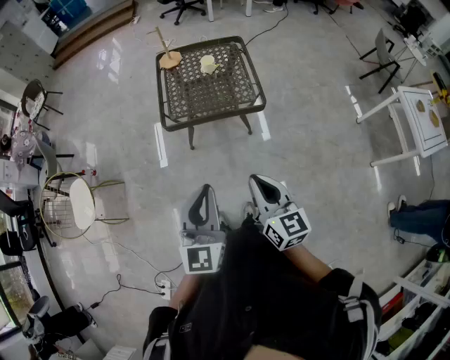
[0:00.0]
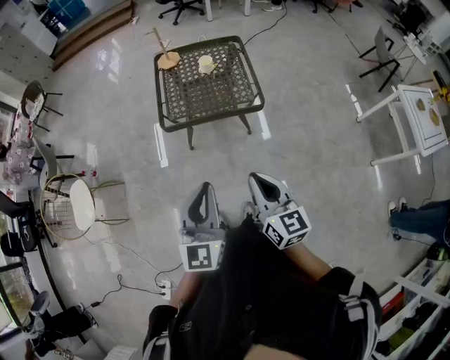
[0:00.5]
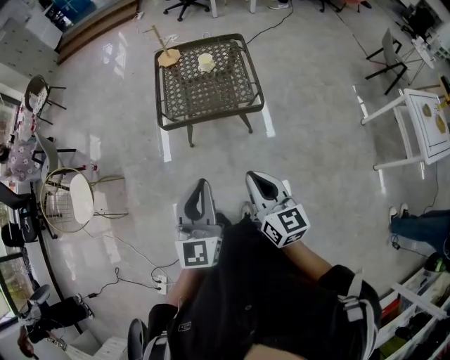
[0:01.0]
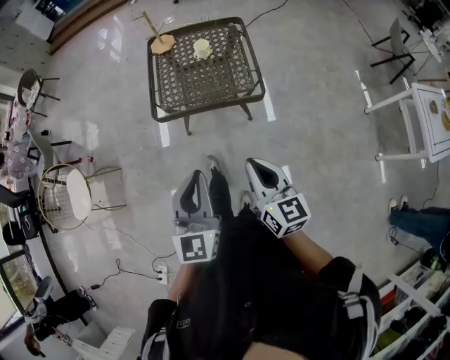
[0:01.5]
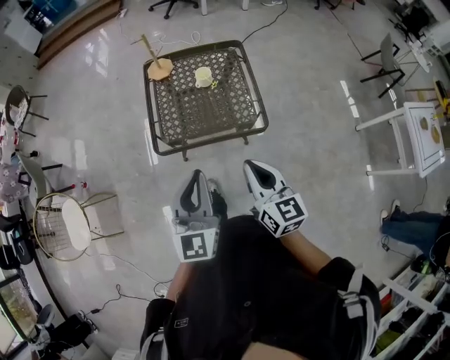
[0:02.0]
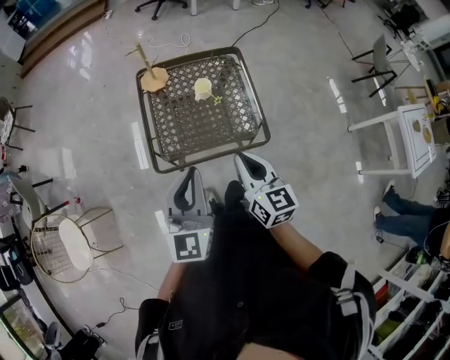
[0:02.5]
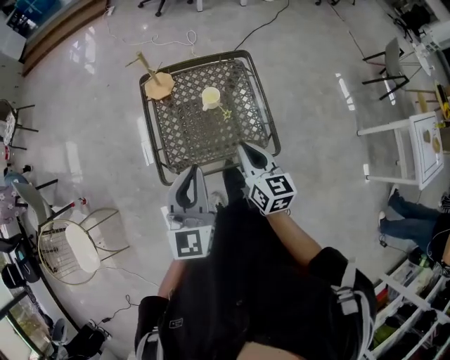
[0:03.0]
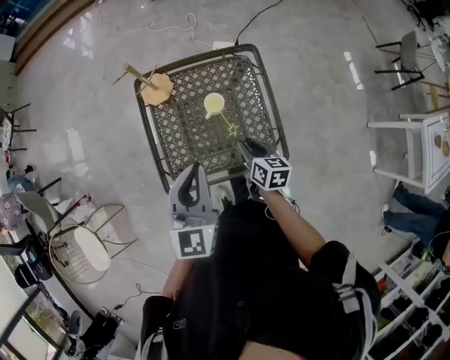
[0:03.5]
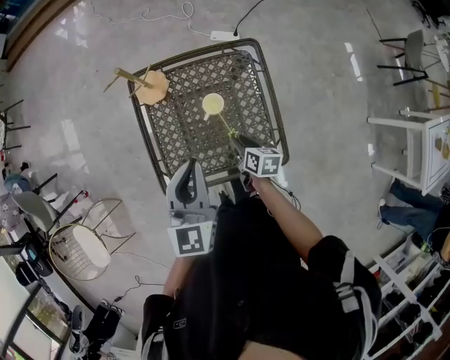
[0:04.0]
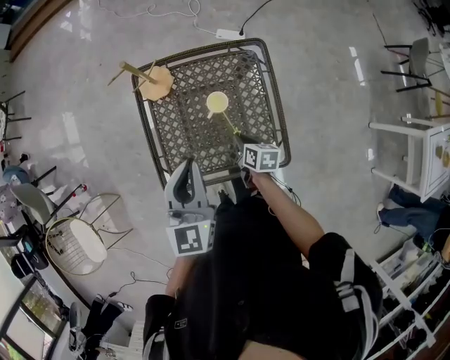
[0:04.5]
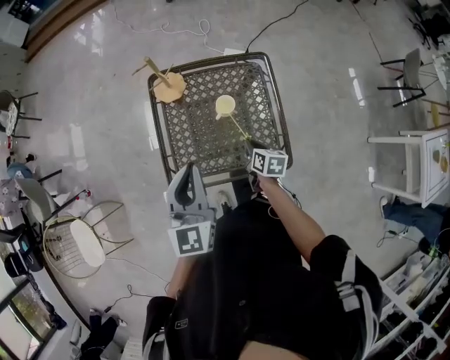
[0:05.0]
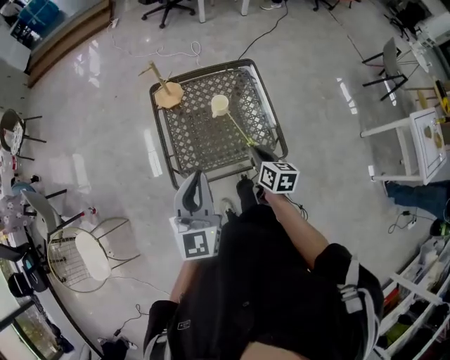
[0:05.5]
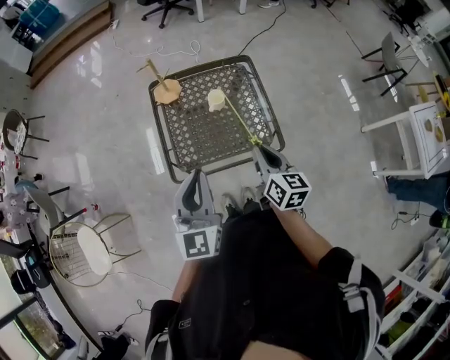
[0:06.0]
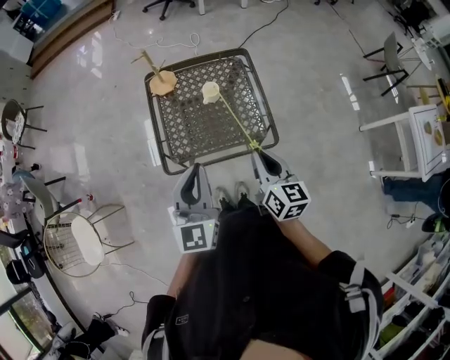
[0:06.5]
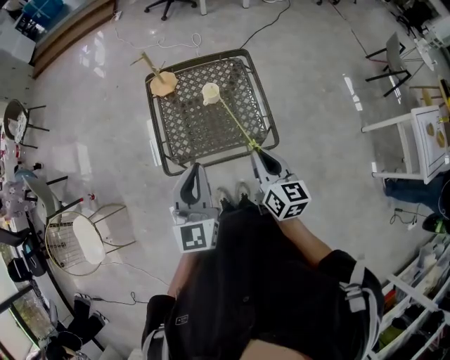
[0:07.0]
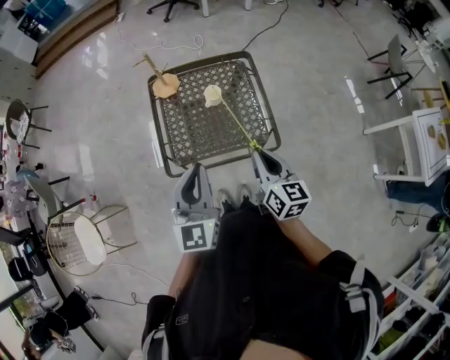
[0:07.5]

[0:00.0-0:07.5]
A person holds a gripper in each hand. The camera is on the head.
0:00.0 to 0:02.0: Both grippers move forward, approximately 25 cm.
0:02.0 to 0:04.0: The right gripper is displaced forward and downward by some 50 cm, tilts its fingers approximately 30 degrees downward, and opens, while the left gripper shifts roughly 40 cm forward.
0:04.0 to 0:05.5: The left gripper is displaced backward and to the left by roughly 20 cm; the right gripper is displaced upward and backward by about 20 cm, and closes.
0:05.5 to 0:07.5: The left gripper travels to the right by approximately 5 cm; the right gripper is displaced upward and backward by some 15 cm.

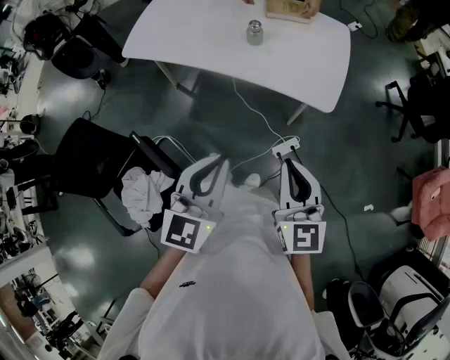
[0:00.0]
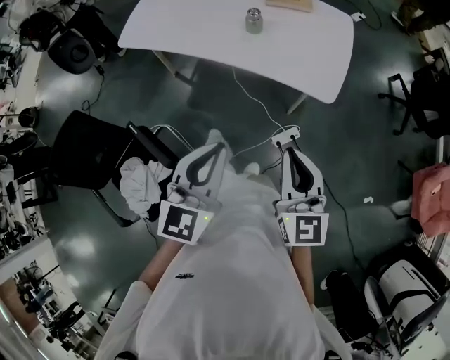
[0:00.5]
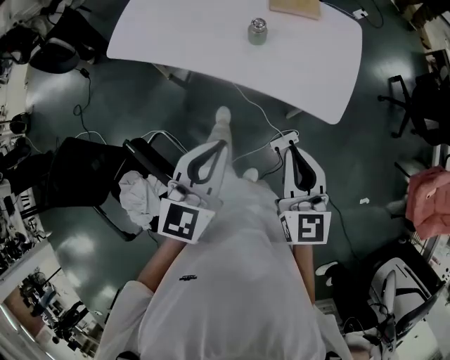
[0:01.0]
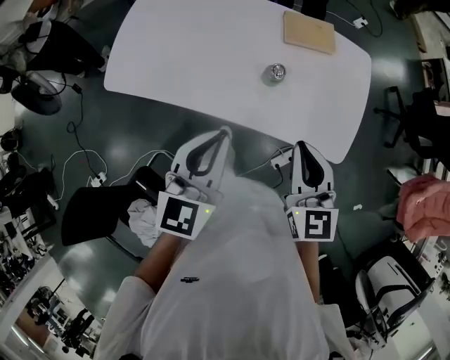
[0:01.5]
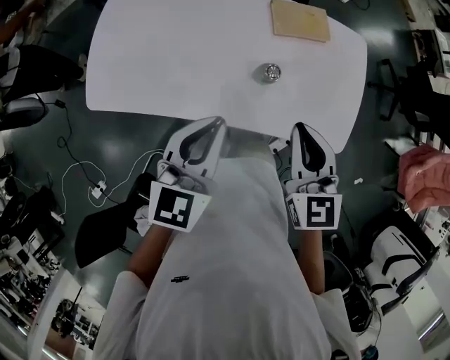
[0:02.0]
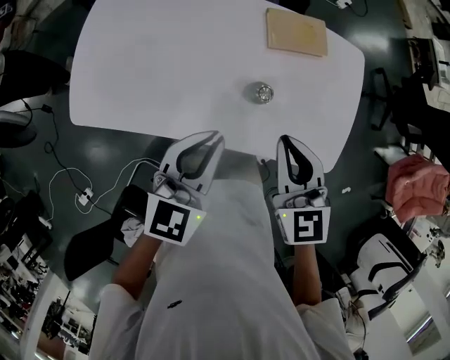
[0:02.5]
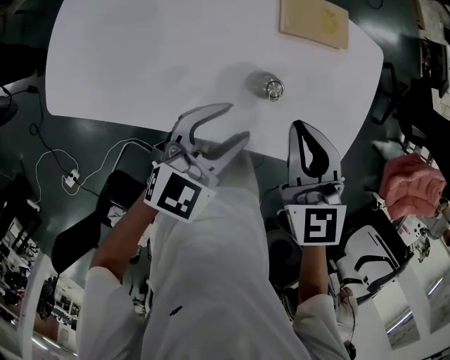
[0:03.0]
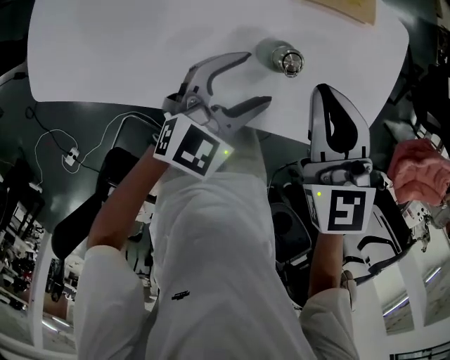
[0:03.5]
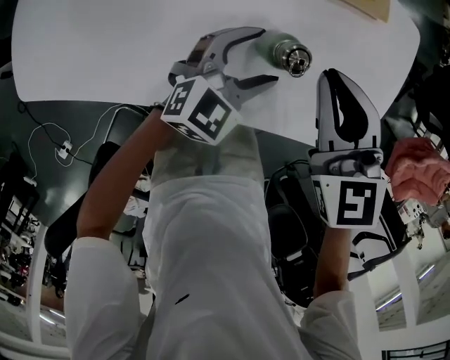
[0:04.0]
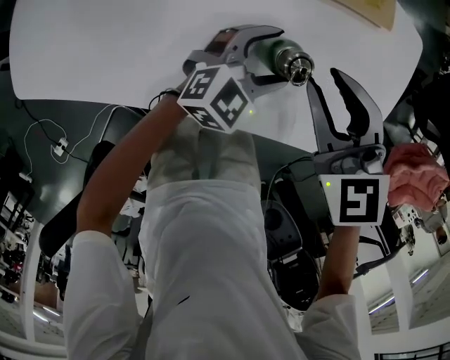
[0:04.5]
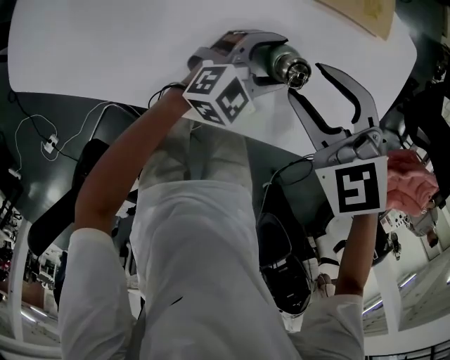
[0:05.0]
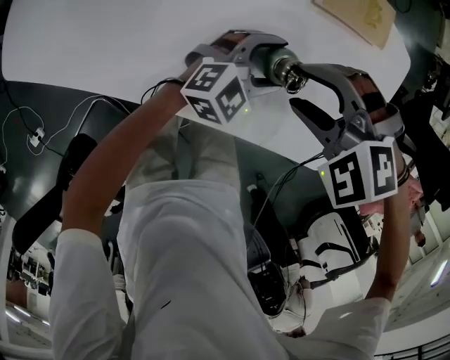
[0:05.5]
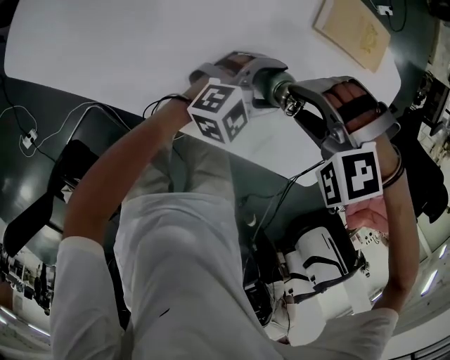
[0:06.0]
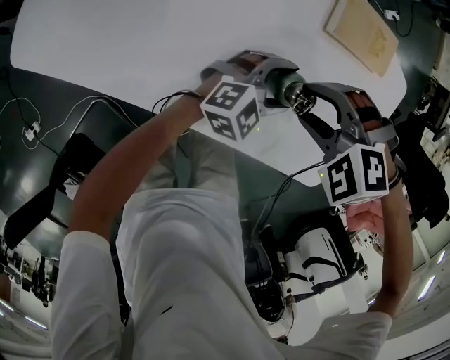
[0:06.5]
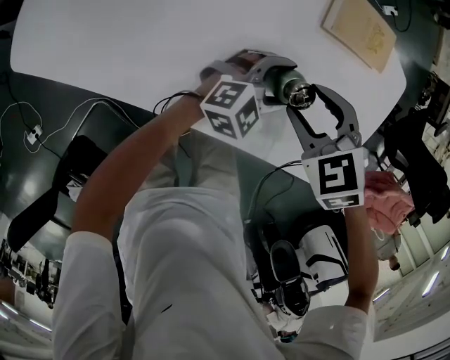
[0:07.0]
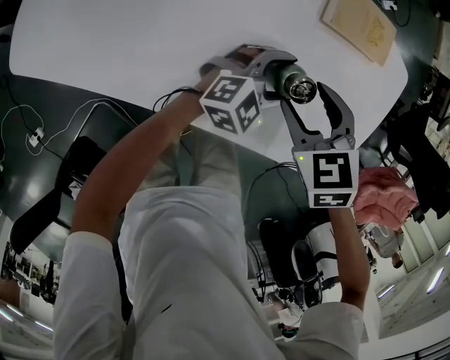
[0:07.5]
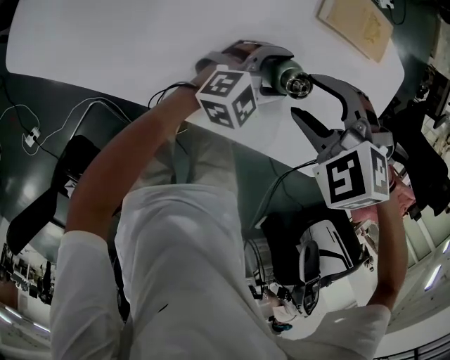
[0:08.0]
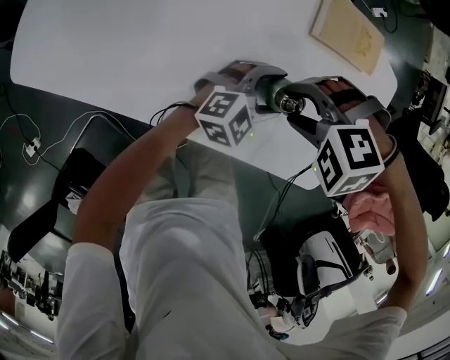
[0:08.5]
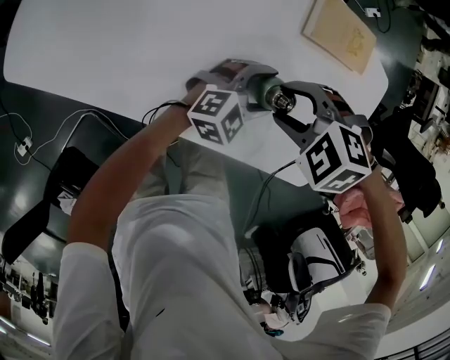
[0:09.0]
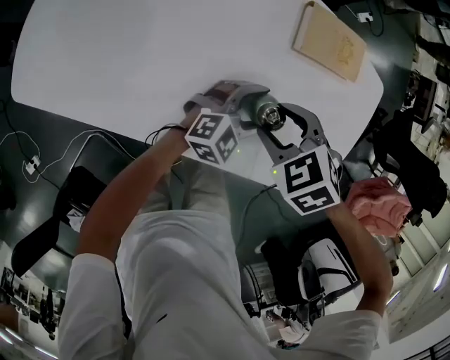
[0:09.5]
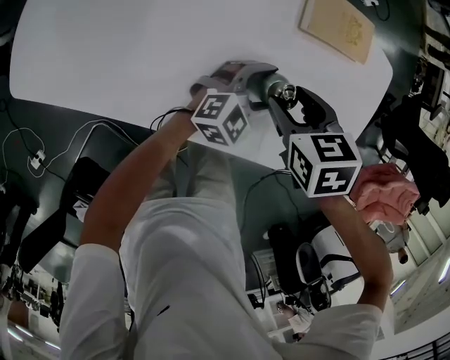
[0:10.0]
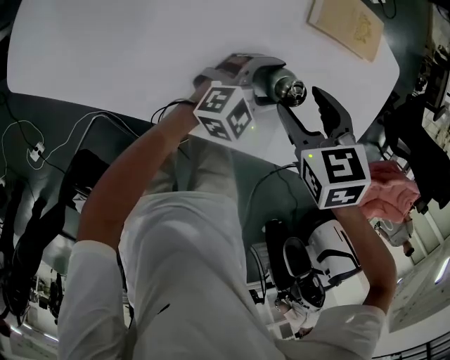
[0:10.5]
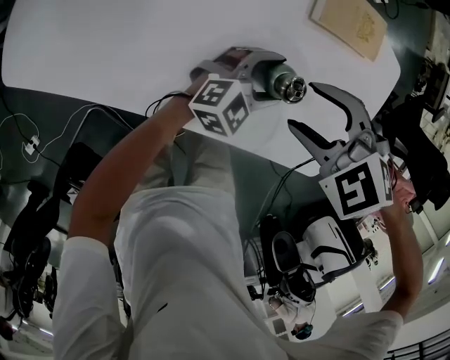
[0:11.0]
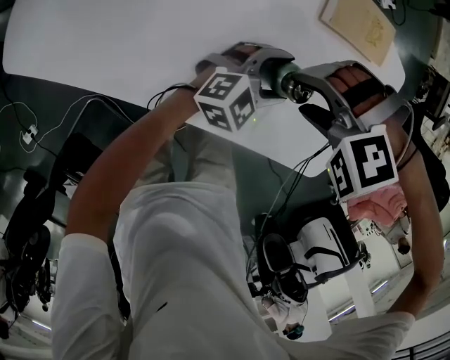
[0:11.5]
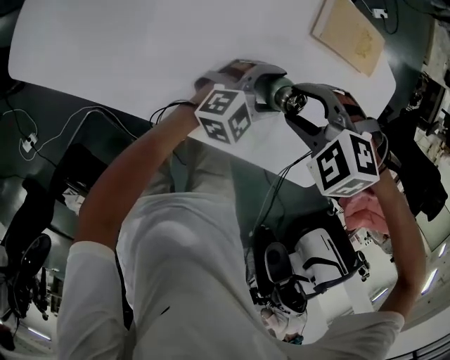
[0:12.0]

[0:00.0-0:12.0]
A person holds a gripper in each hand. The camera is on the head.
0:00.0 to 0:02.0: The two grippers travel together, forward, roughly 40 cm.
0:02.0 to 0:04.0: Both grippers move downward and forward, some 25 cm. The left gripper rotates approximately 30 degrees, and opens its fingers.
0:04.0 to 0:06.0: The right gripper heads downward, covering approximately 10 cm, rotates around the line of its fingers by roughly 80 degrees, counterclockwise from behind, and opens, while the left gripper moves approximately 5 cm.
0:06.0 to 0:08.0: The right gripper rotates approximately 40 degrees.
0:08.0 to 0:10.0: The right gripper rotates around the line of its fingers by roughly 60 degrees, clockwise from behind.
0:10.0 to 0:12.0: The right gripper rolls counterclockwise, seen from behind, by approximately 70 degrees.

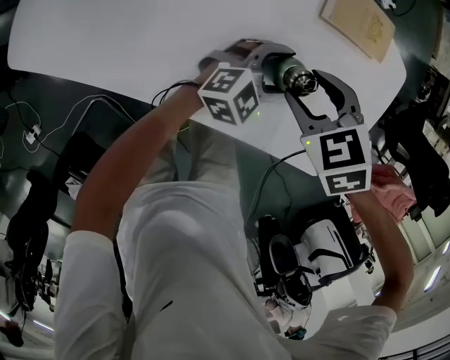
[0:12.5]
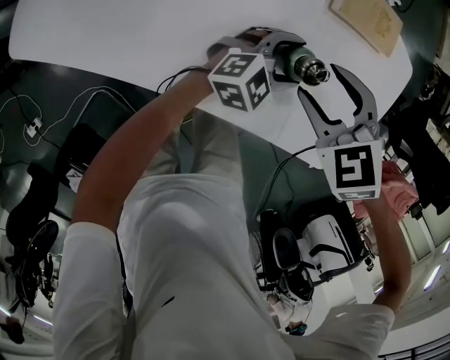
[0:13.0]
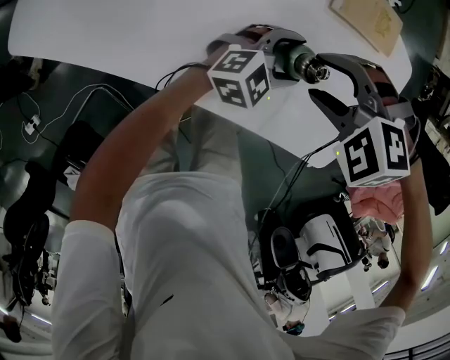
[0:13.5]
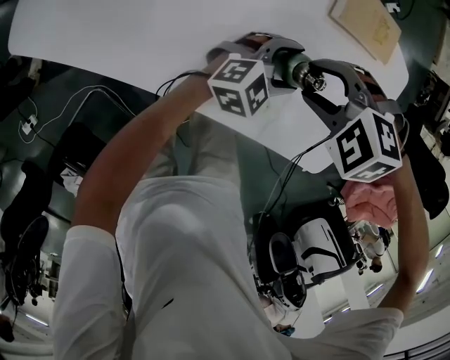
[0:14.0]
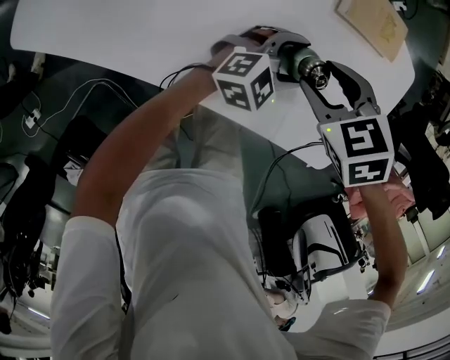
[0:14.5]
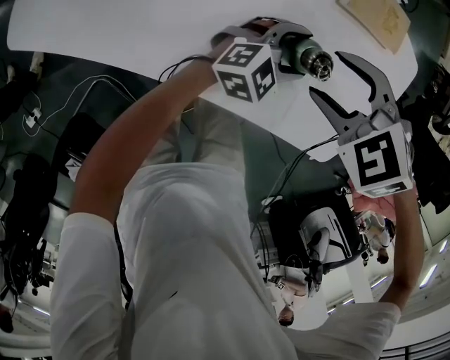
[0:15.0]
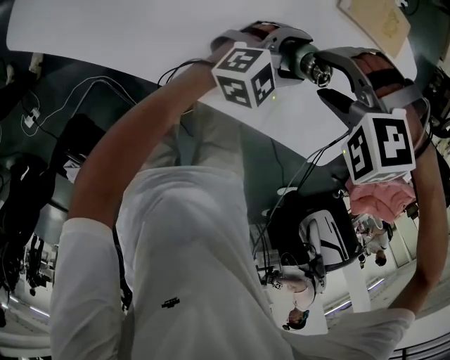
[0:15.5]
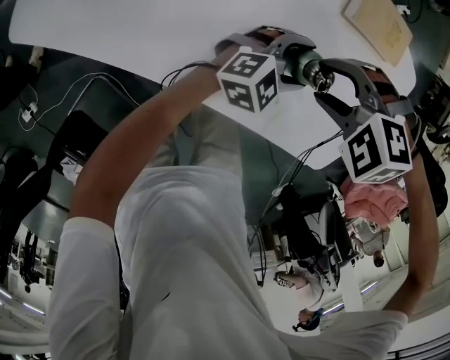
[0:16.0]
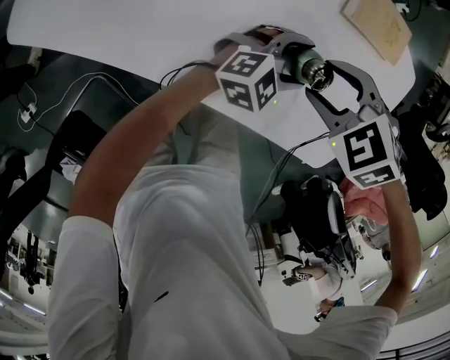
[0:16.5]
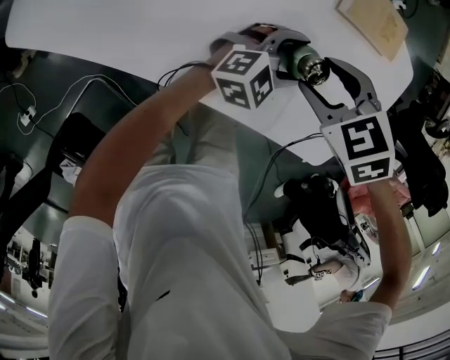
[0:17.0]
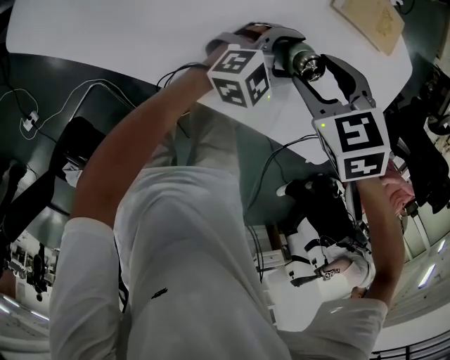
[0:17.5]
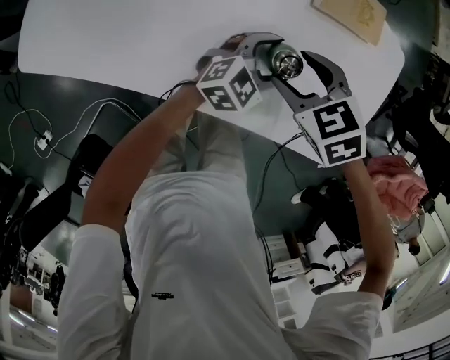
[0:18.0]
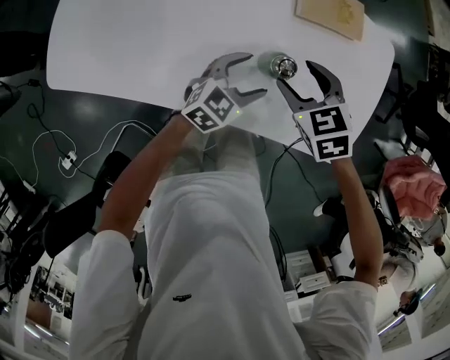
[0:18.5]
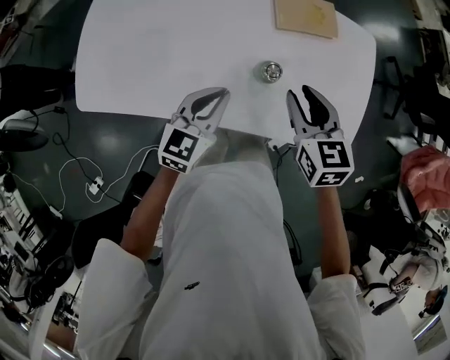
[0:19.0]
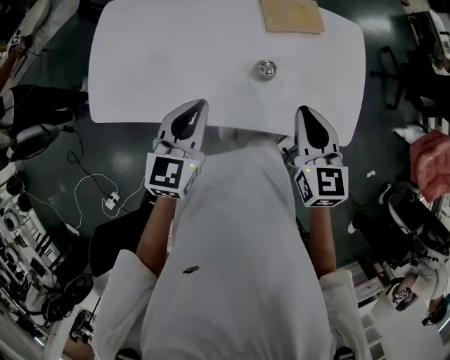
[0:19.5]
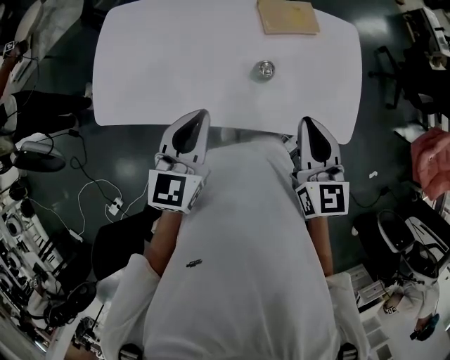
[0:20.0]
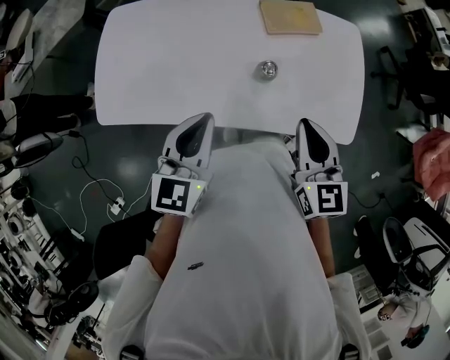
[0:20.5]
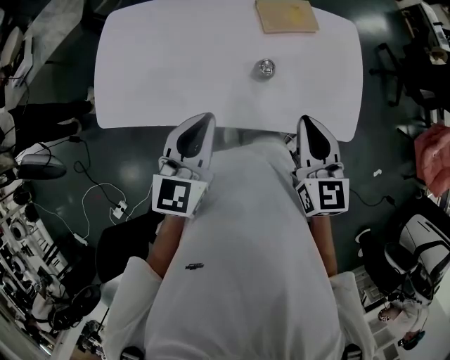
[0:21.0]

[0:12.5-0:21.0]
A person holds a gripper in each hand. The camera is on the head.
0:14.5 to 0:16.5: The right gripper rotates roughly 30 degrees.
0:16.5 to 0:19.0: The left gripper ends up approximately 25 cm from where it was, turns by roughly 30 degrees, and closes its fingers. The right gripper moves upward, about 15 cm, angles its fingers upward, by roughly 40 degrees, and closes its fingers.
0:19.0 to 0:21.0: The right gripper moves backward and upward, some 15 cm, changes its angle by some 20 degrees, and closes. The left gripper moves upward and backward, about 15 cm.
